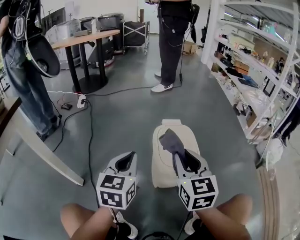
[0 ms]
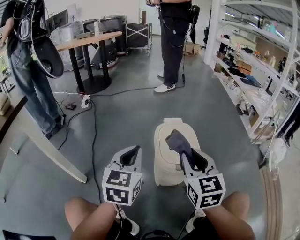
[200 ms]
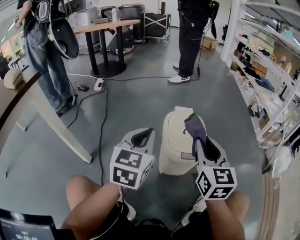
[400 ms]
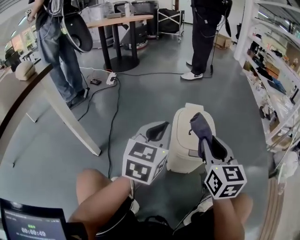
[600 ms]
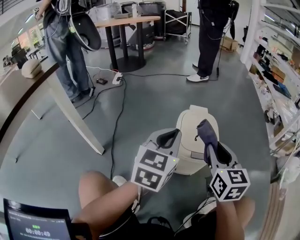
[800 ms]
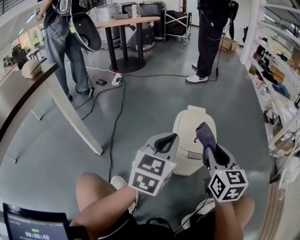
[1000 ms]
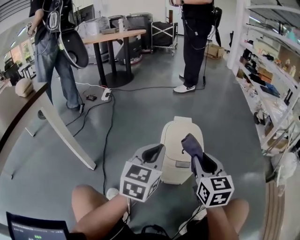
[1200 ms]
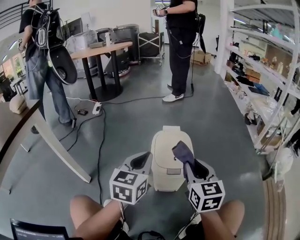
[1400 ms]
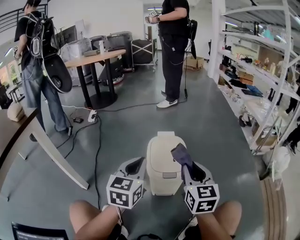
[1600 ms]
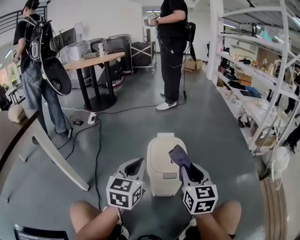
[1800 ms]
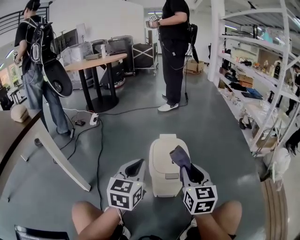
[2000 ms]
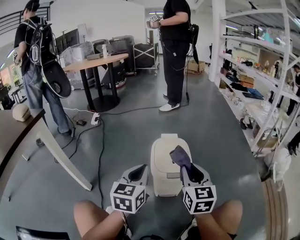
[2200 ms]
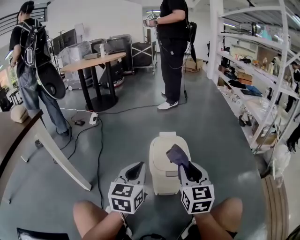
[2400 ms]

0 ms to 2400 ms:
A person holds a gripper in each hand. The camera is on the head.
0 ms to 1200 ms: The grippers both shift to the right by roughly 10 cm.
1200 ms to 2400 ms: The grippers make only small movements.

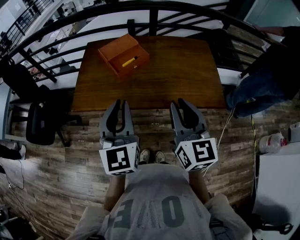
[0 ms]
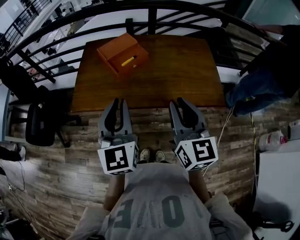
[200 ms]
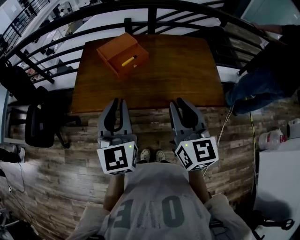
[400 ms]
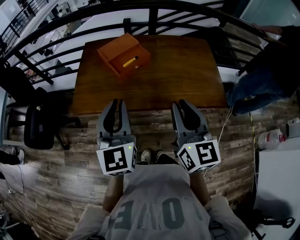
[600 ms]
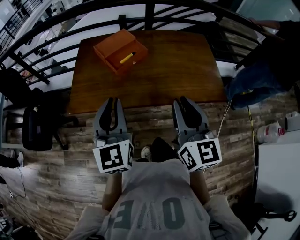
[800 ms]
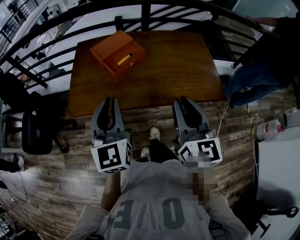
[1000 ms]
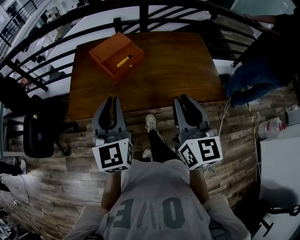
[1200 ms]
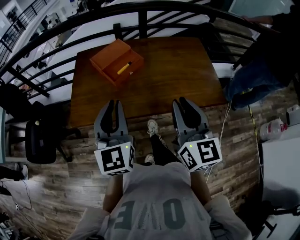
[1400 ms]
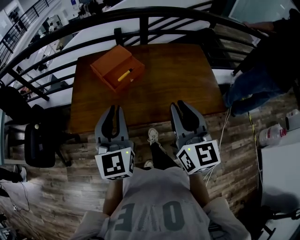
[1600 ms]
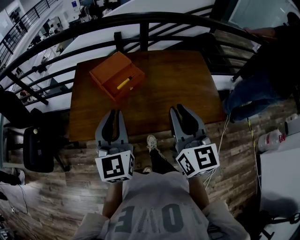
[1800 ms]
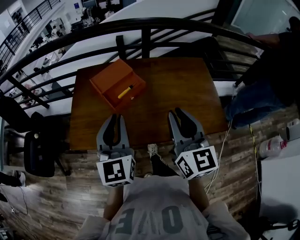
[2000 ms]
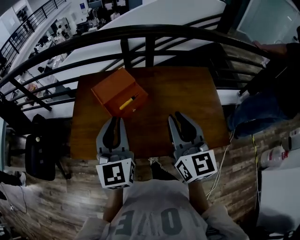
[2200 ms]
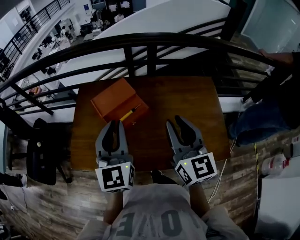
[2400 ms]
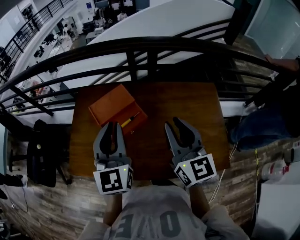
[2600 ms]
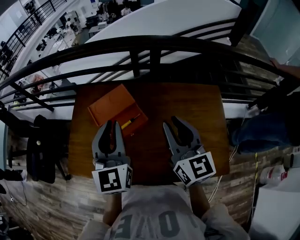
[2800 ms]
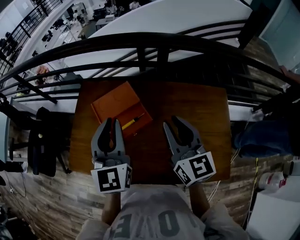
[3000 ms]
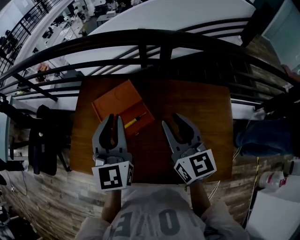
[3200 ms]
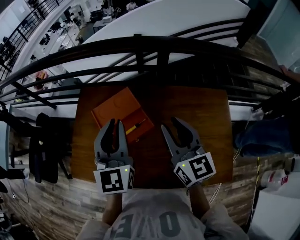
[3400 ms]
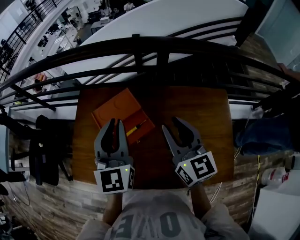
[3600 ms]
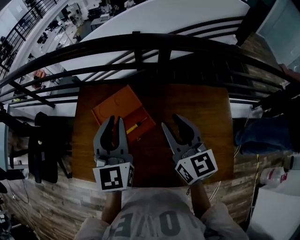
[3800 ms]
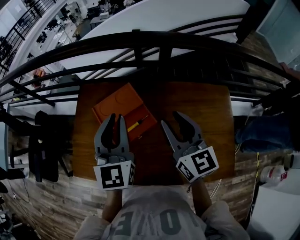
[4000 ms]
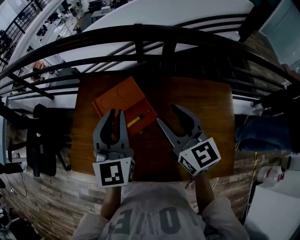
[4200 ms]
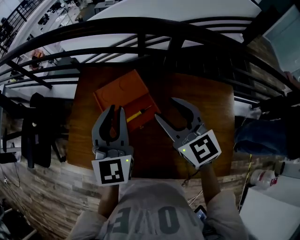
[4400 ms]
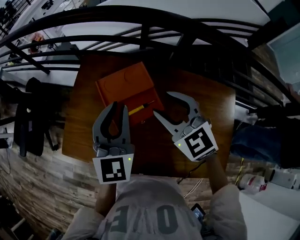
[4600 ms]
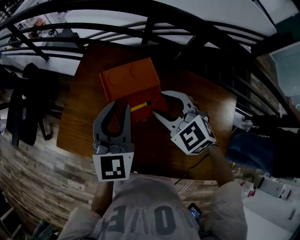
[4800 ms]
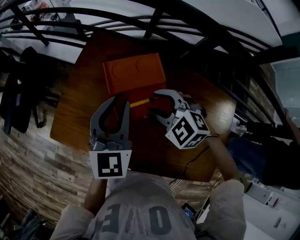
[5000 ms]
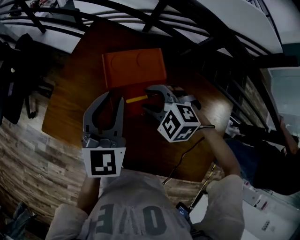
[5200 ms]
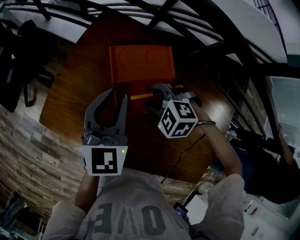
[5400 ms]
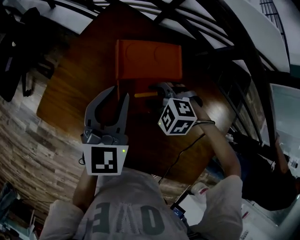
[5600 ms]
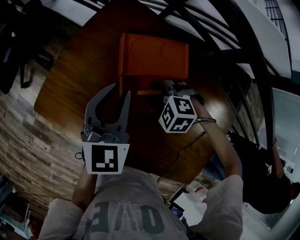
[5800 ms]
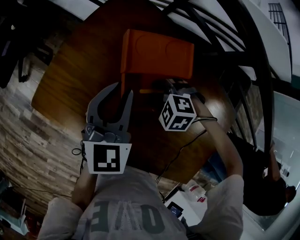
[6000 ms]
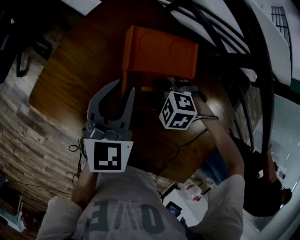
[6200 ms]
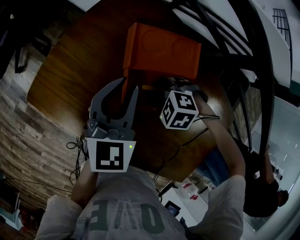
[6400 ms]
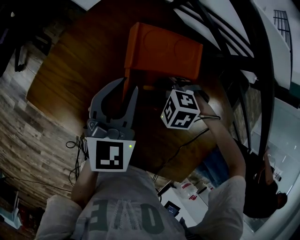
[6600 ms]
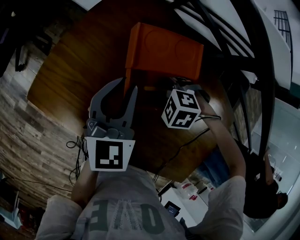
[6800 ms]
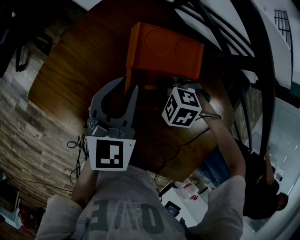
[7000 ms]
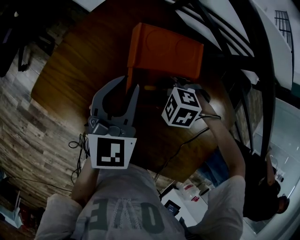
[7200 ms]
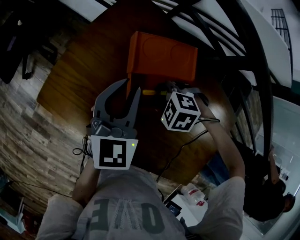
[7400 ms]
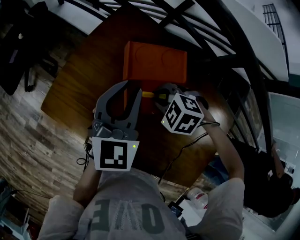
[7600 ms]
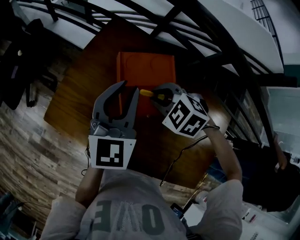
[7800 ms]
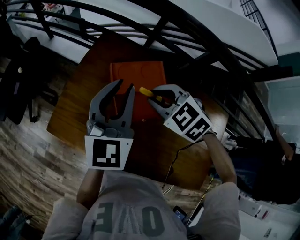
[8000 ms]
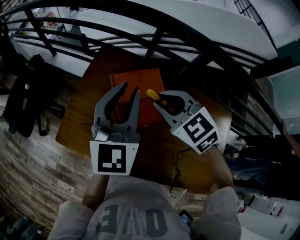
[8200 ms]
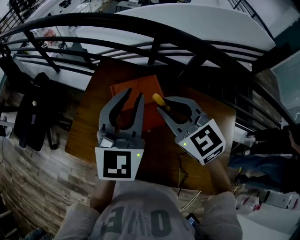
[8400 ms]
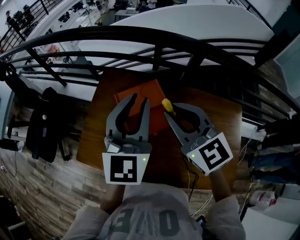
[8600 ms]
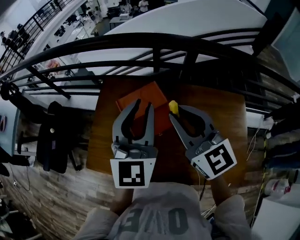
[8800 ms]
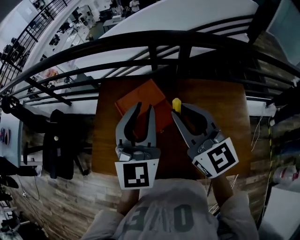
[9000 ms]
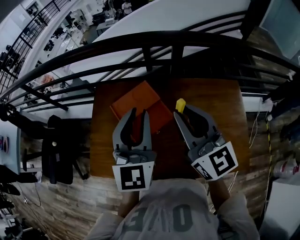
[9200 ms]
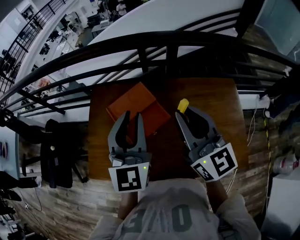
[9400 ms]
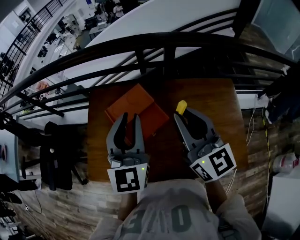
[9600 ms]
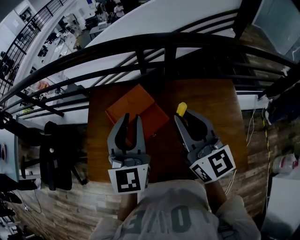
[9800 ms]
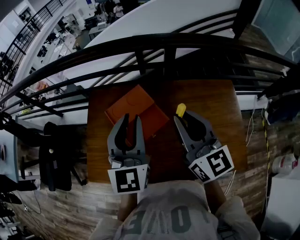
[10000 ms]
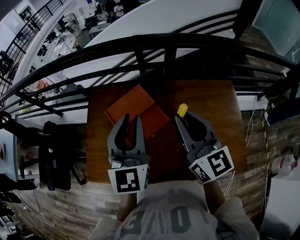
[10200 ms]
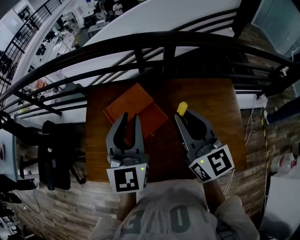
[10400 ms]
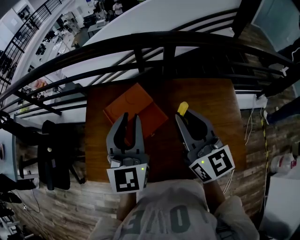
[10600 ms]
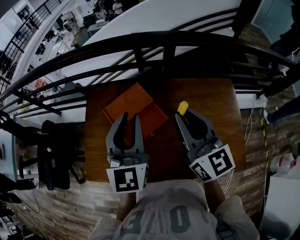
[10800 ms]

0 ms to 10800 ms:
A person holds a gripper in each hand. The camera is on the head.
0 ms to 1600 ms: Both grippers move forward, some 5 cm.
1600 ms to 3000 ms: Both grippers move forward, about 25 cm.
3000 ms to 4600 ms: The left gripper moves about 5 cm; the right gripper travels to the left and forward by approximately 10 cm, swivels some 50 degrees, and opens its fingers.
4600 ms to 6200 ms: The right gripper heads downward, covering about 25 cm, and tilts its fingers roughly 50 degrees downward. Meanwhile the left gripper shifts about 15 cm downward.
6200 ms to 7800 ms: Both grippers travel together upward, some 10 cm. The right gripper rotates some 20 degrees.
7800 ms to 9200 ms: The right gripper is displaced upward by about 25 cm, and tips its fingers upward by about 70 degrees. Meanwhile the left gripper goes some 10 cm upward, and rotates approximately 20 degrees.
9200 ms to 10800 ms: The grippers stay close to where they were, moving slightly.

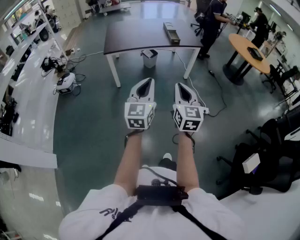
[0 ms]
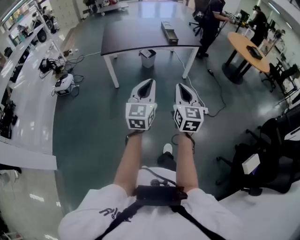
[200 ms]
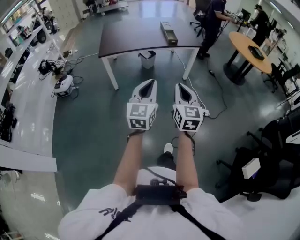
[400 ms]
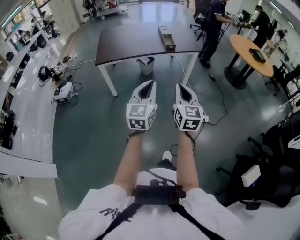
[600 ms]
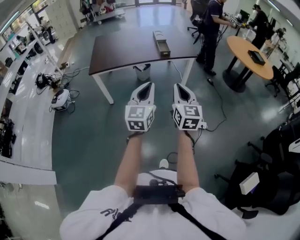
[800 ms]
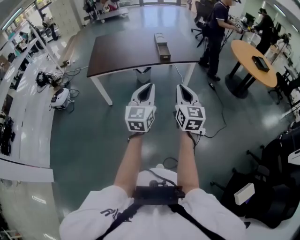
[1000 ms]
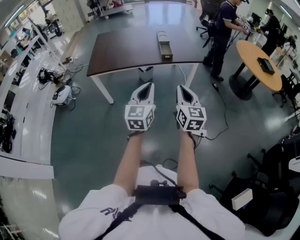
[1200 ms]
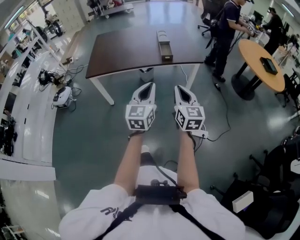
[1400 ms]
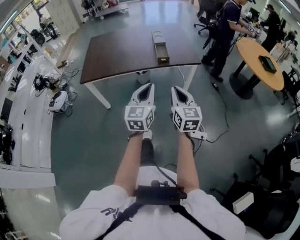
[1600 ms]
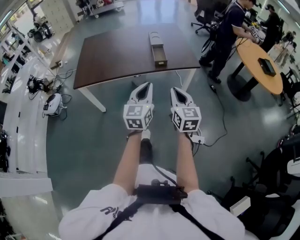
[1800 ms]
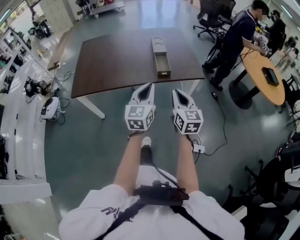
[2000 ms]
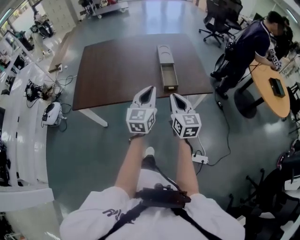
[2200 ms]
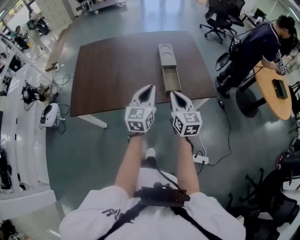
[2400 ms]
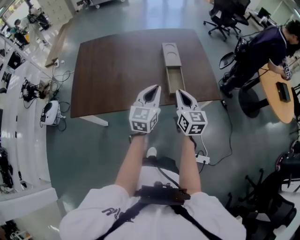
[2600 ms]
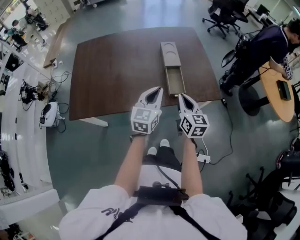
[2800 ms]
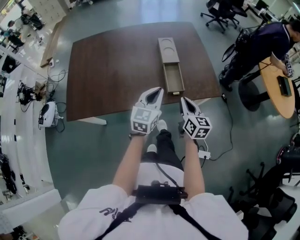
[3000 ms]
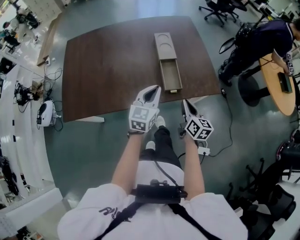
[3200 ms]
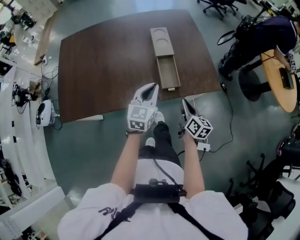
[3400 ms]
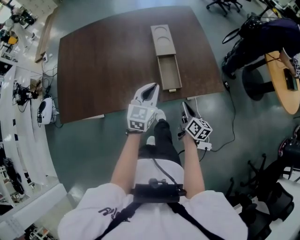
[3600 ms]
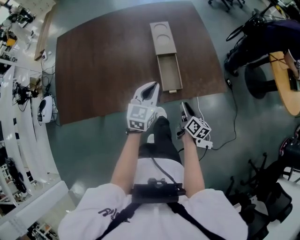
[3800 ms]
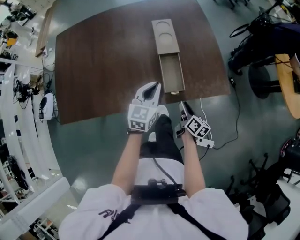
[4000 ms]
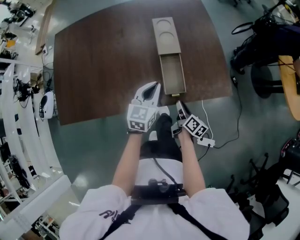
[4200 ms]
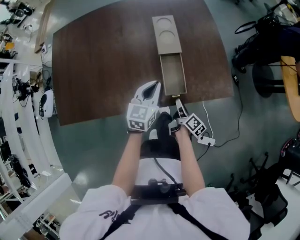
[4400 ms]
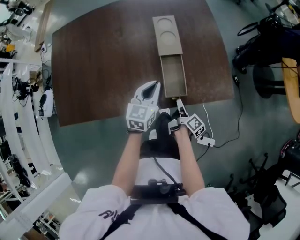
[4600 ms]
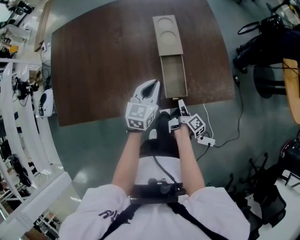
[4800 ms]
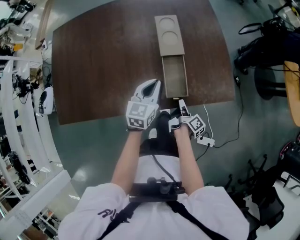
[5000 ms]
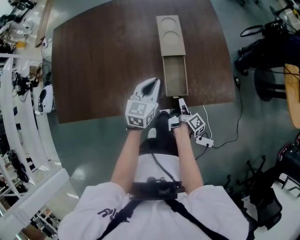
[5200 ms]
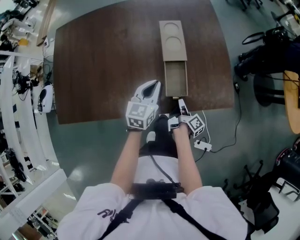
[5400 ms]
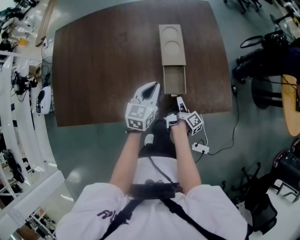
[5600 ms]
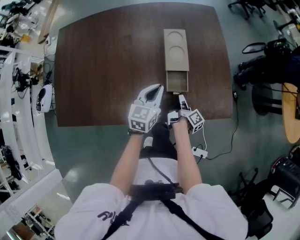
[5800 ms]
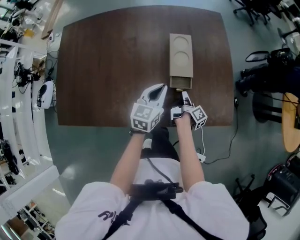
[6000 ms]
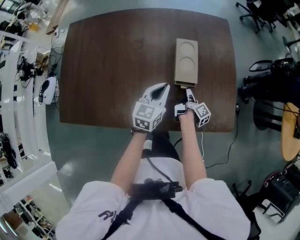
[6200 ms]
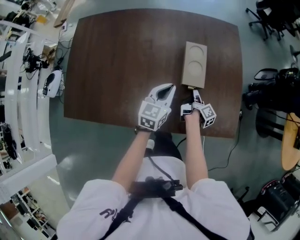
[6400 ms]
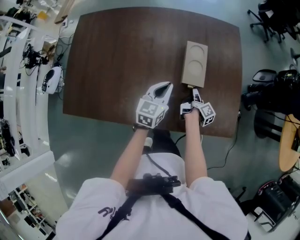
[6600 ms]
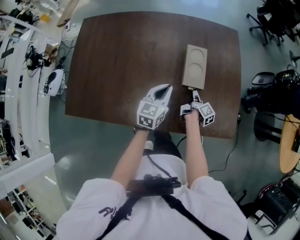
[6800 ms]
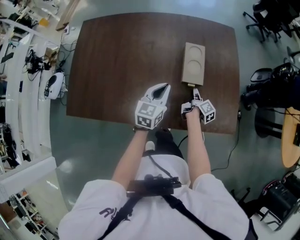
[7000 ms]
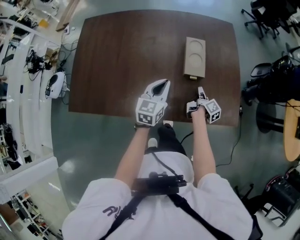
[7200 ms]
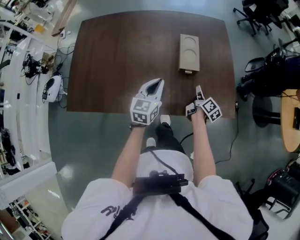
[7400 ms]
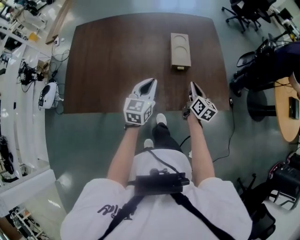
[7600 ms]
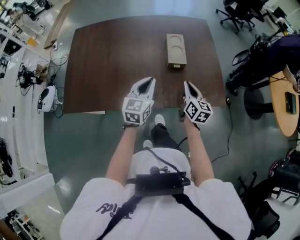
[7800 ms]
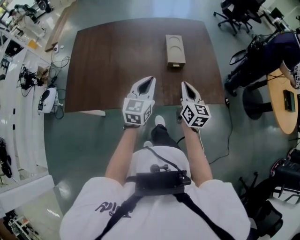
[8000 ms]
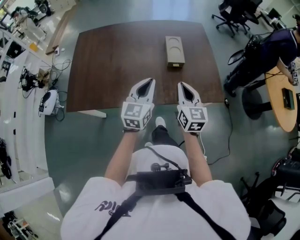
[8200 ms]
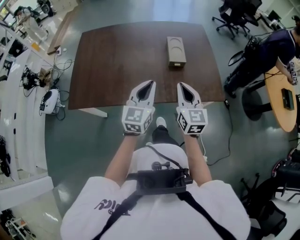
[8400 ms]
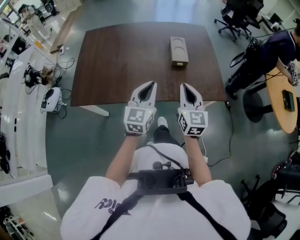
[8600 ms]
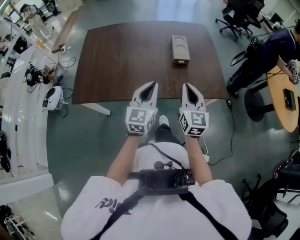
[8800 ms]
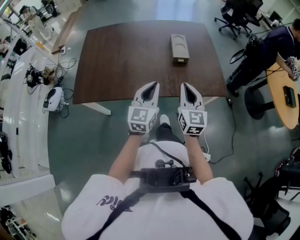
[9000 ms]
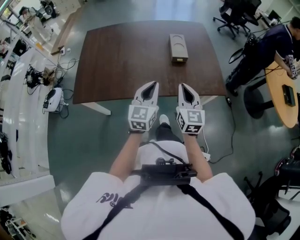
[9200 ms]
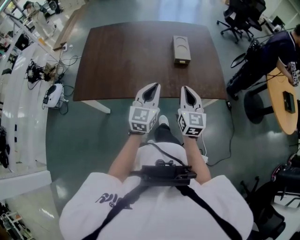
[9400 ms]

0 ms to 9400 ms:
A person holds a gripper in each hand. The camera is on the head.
0 ms to 1600 ms: The pair of grippers is taken forward and to the right, about 50 cm.
1600 ms to 3200 ms: The two grippers travel together, forward, roughly 50 cm. The right gripper moves downward, some 20 cm, and changes its angle by some 30 degrees.
3200 ms to 4800 ms: The left gripper is displaced forward and downward by roughly 20 cm. The right gripper shifts approximately 20 cm downward and forward, and rolls clockwise, seen from behind, by roughly 60 degrees.
4800 ms to 6200 ms: The left gripper moves forward, roughly 10 cm. The right gripper shifts about 20 cm forward.
6200 ms to 7800 ms: The left gripper is displaced backward and upward by about 20 cm. The right gripper is displaced upward and backward by roughly 25 cm, and rolls counterclockwise, seen from behind, by roughly 70 degrees.
7800 ms to 9400 ms: The left gripper shifts some 15 cm backward; the right gripper heads backward and upward, covering some 20 cm, and turns by some 20 degrees.

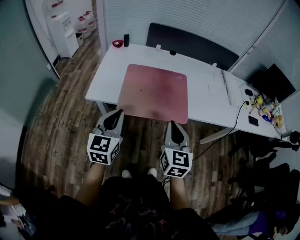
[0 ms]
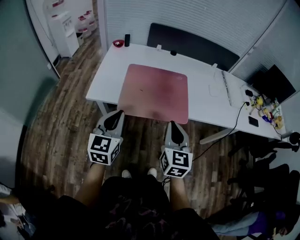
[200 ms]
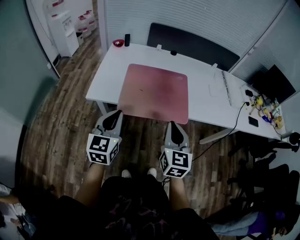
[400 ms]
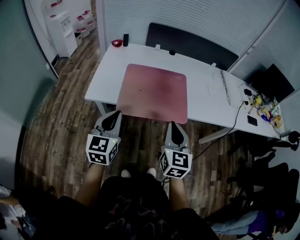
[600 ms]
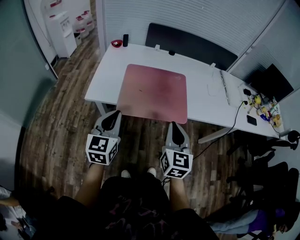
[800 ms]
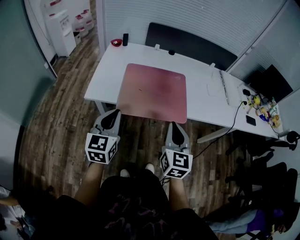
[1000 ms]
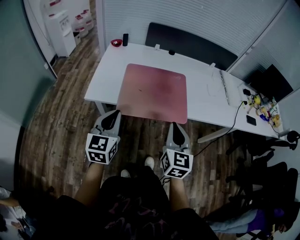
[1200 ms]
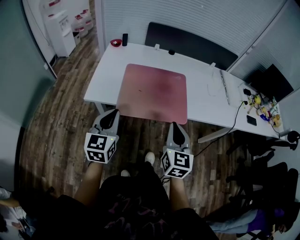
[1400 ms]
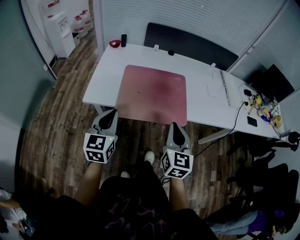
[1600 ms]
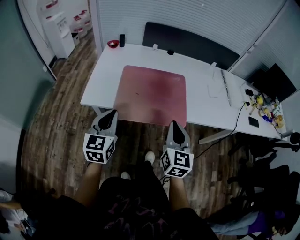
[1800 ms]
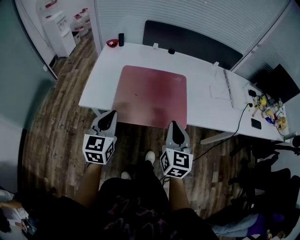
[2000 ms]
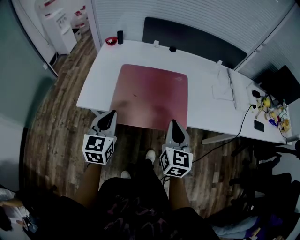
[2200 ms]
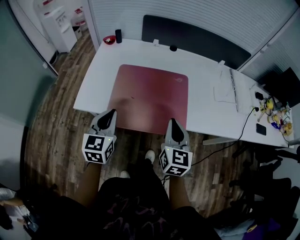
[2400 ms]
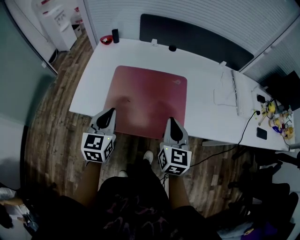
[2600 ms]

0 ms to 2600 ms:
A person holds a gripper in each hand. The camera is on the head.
0 ms to 1200 ms: There are only small adjustments of the grippers.
1200 ms to 2600 ms: Both grippers move forward, some 15 cm.
